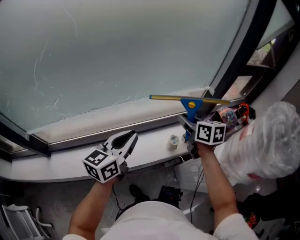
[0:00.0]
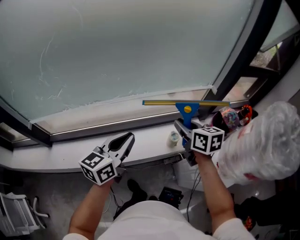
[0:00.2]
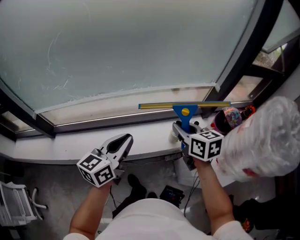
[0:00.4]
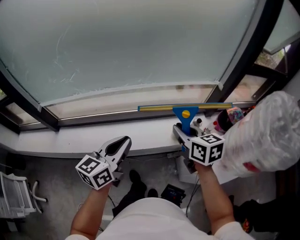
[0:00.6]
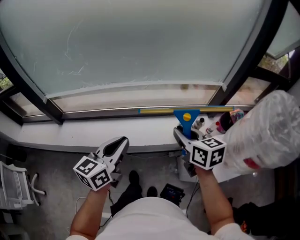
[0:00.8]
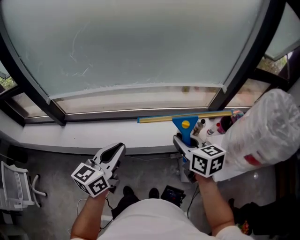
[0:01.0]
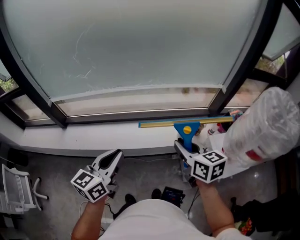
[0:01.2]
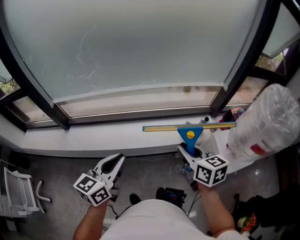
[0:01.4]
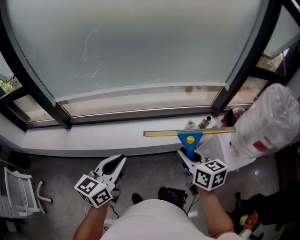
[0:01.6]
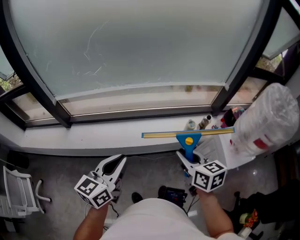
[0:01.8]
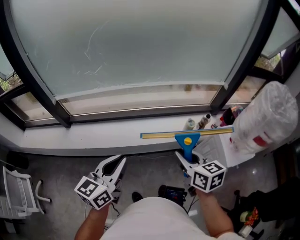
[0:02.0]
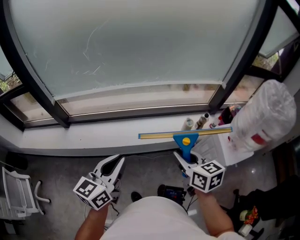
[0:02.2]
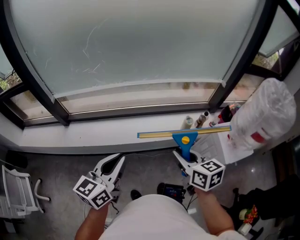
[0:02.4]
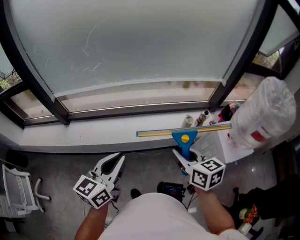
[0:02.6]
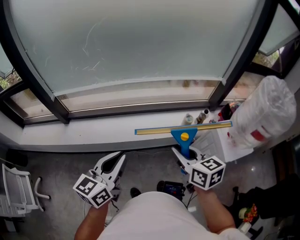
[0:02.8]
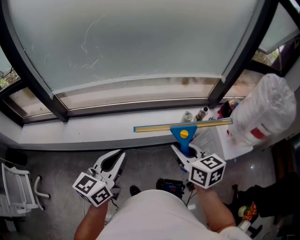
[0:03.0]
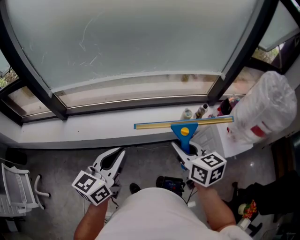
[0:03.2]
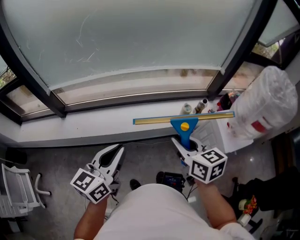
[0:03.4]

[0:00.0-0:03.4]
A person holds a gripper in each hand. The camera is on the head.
0:00.0 to 0:01.6: The two grippers go some 35 cm backward and to the left.
0:01.6 to 0:03.4: There are only small adjustments of the grippers.

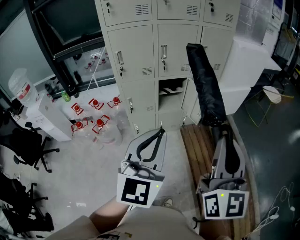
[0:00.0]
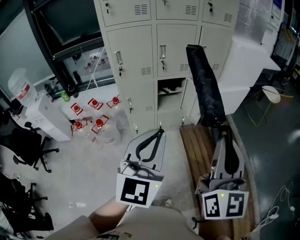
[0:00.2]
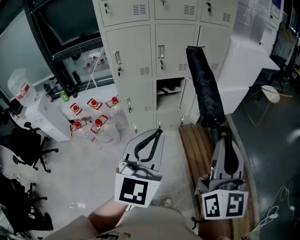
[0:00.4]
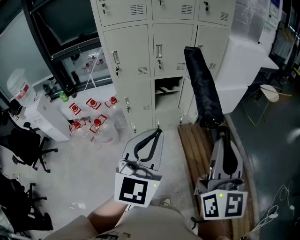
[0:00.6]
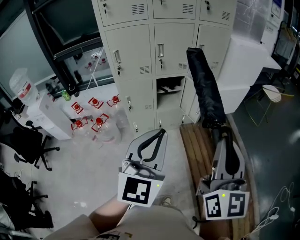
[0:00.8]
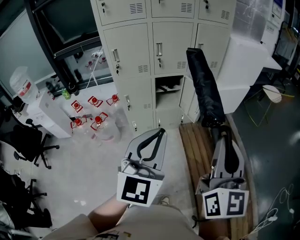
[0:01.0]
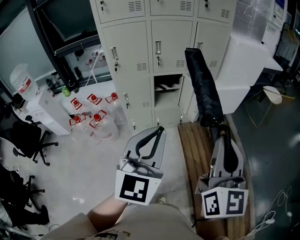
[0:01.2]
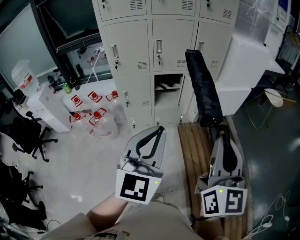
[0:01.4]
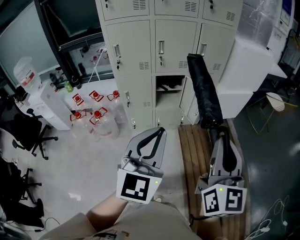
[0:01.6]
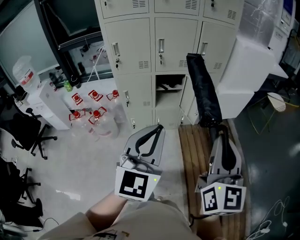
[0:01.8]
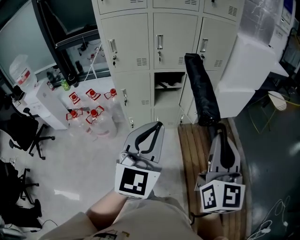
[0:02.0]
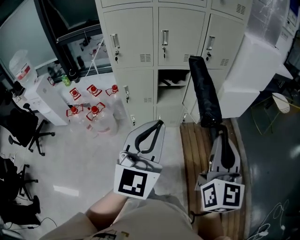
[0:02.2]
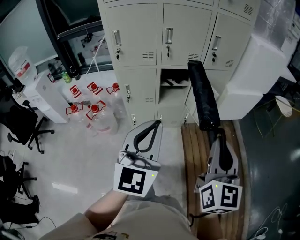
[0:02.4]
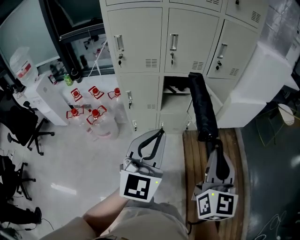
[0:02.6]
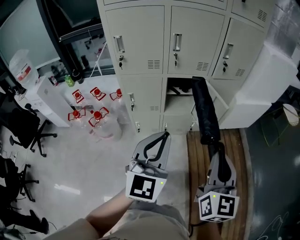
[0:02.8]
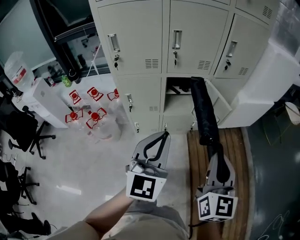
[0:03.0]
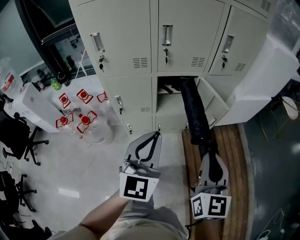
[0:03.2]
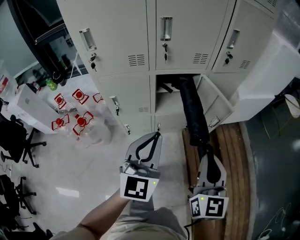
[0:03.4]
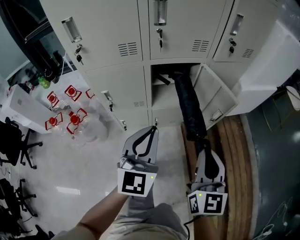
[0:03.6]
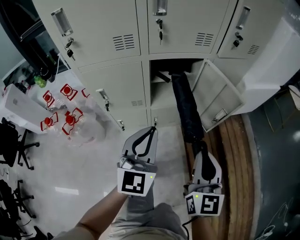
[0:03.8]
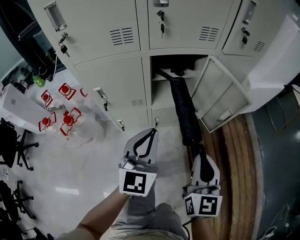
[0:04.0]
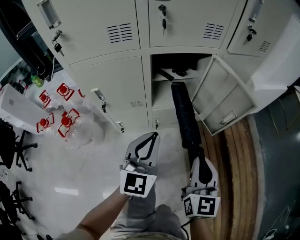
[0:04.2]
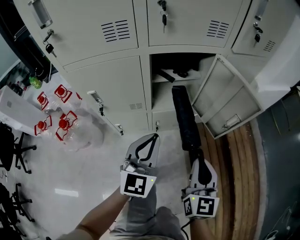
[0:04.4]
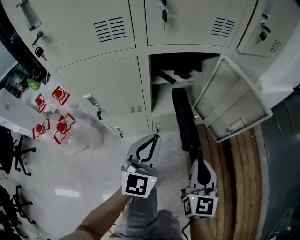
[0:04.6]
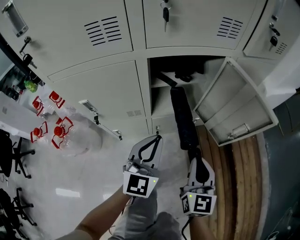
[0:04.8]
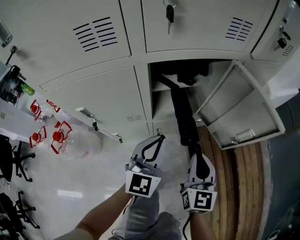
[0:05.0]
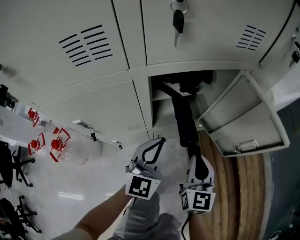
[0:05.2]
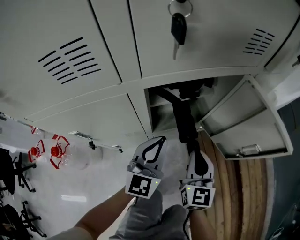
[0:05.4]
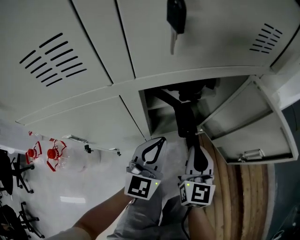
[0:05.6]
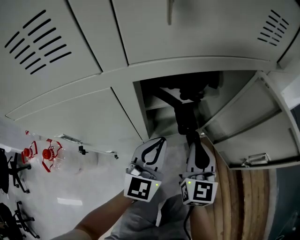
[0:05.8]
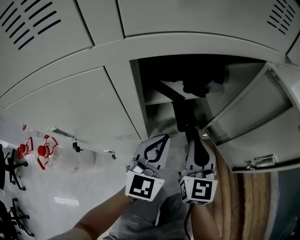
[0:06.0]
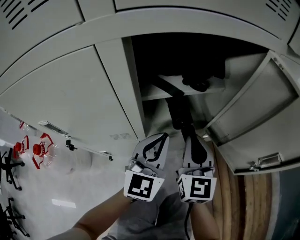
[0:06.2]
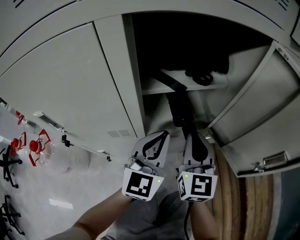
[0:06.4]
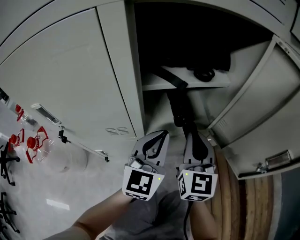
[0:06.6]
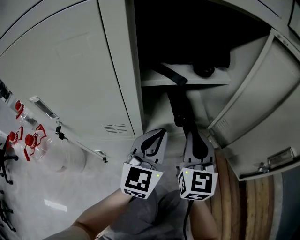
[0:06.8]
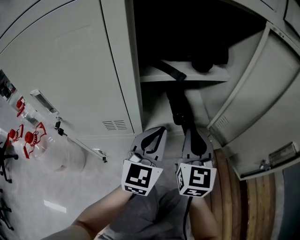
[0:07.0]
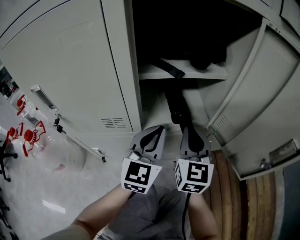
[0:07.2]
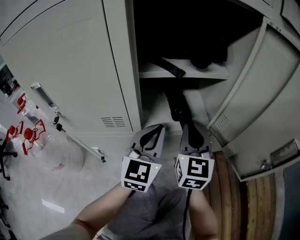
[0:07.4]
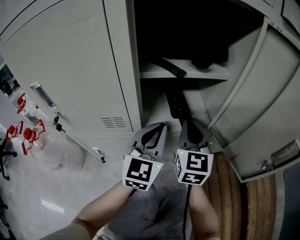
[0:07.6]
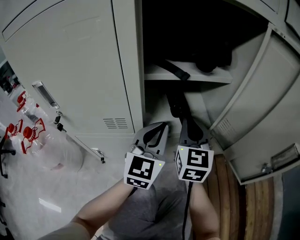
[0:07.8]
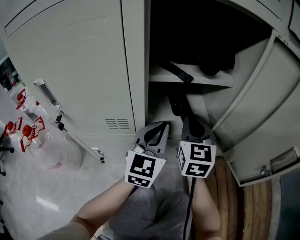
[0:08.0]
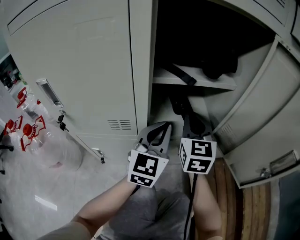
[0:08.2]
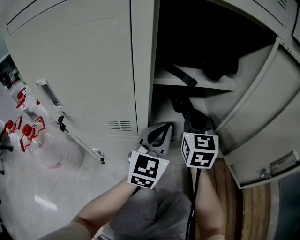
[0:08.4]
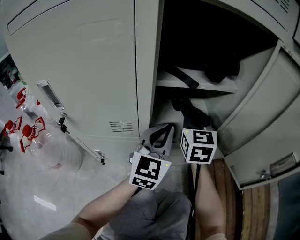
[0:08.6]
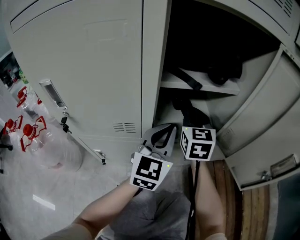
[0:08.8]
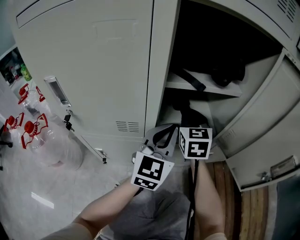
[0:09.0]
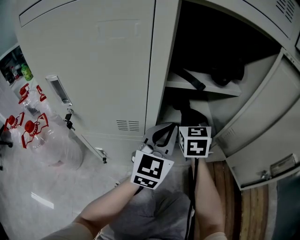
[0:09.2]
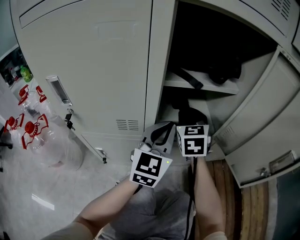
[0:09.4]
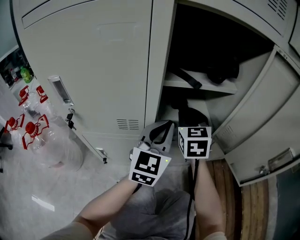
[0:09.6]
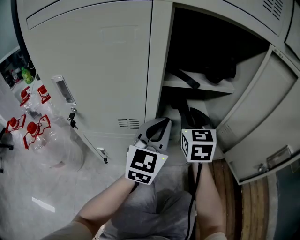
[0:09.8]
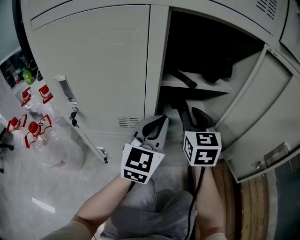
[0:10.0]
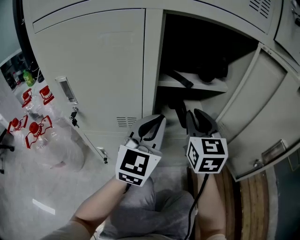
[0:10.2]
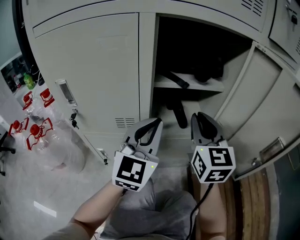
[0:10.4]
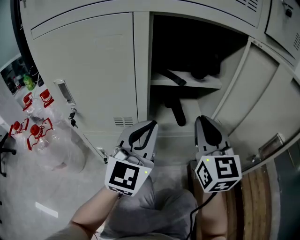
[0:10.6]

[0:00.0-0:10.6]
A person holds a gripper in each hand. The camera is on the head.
0:00.0 to 0:01.6: The two grippers go some 10 cm to the right.
0:01.6 to 0:03.0: The two grippers go roughly 25 cm forward and downward.
0:03.0 to 0:04.6: Both grippers move downward and forward, some 40 cm.
0:04.6 to 0:06.0: Both grippers move forward and downward, about 25 cm.
0:06.0 to 0:07.6: The right gripper travels downward and forward by some 10 cm, while the left gripper moves downward, about 10 cm.
0:07.6 to 0:09.0: The right gripper is displaced forward and to the left by roughly 10 cm.
0:09.0 to 0:10.6: The left gripper goes approximately 10 cm upward and backward. The right gripper travels backward, upward and to the right by approximately 20 cm.

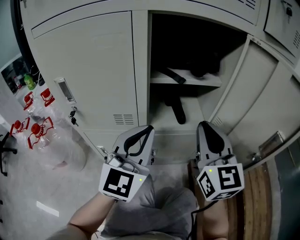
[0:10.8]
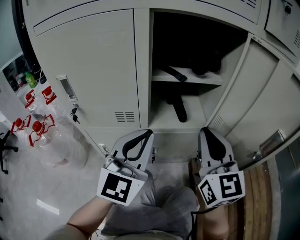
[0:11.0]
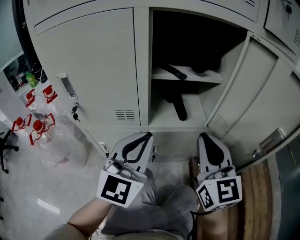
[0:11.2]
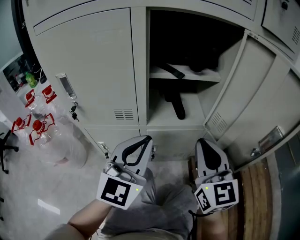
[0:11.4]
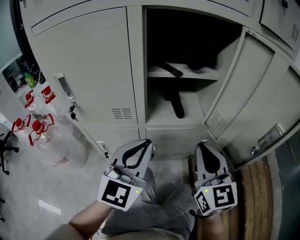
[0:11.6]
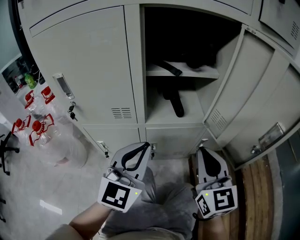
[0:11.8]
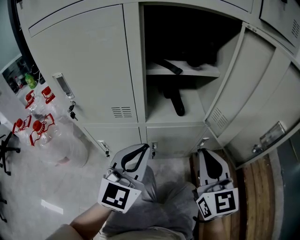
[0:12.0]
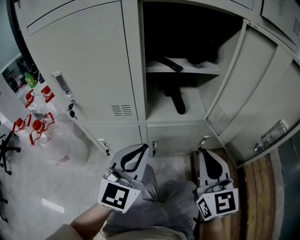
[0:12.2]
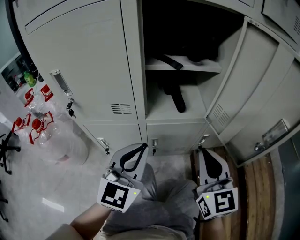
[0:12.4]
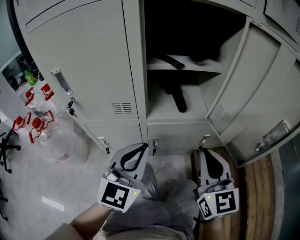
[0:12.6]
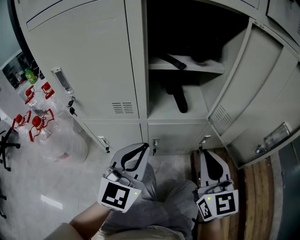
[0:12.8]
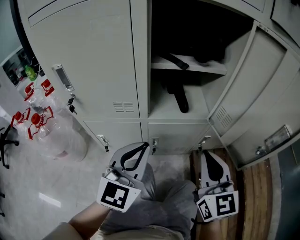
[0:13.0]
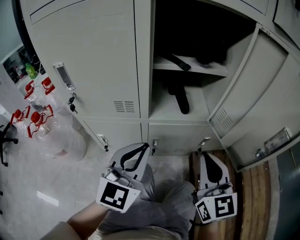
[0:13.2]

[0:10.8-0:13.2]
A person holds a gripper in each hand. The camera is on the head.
0:10.8 to 0:12.0: The left gripper moves downward, about 5 cm; the right gripper shifts approximately 10 cm backward and downward.
0:12.0 to 0:13.2: The grippers stay close to where they were, moving slightly.

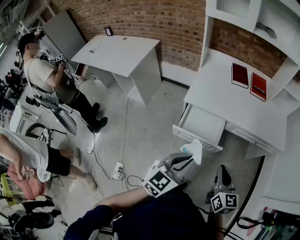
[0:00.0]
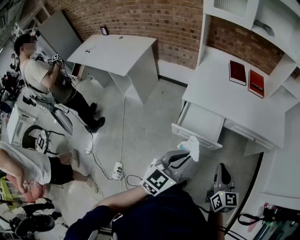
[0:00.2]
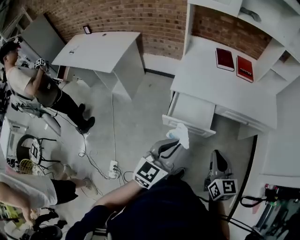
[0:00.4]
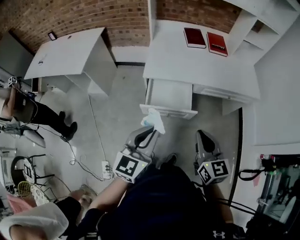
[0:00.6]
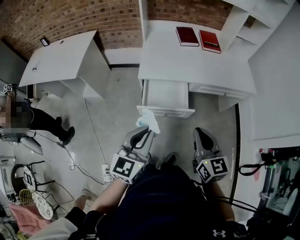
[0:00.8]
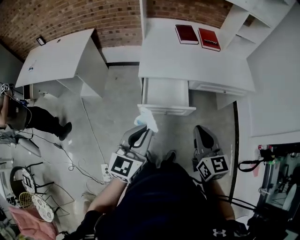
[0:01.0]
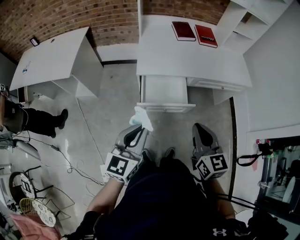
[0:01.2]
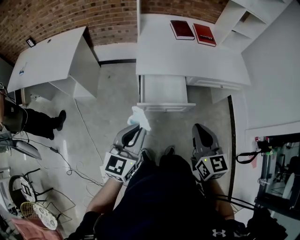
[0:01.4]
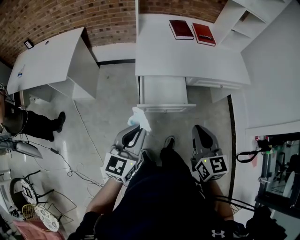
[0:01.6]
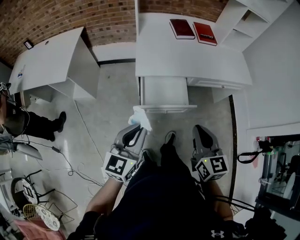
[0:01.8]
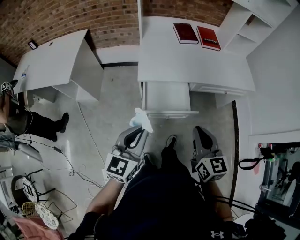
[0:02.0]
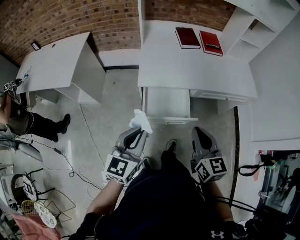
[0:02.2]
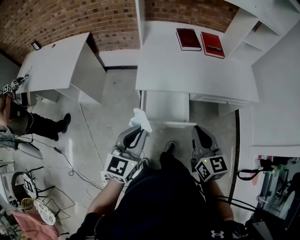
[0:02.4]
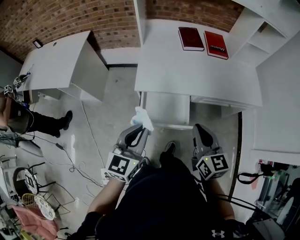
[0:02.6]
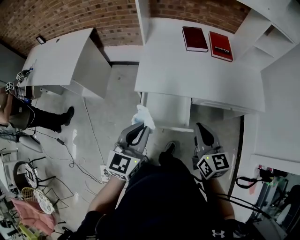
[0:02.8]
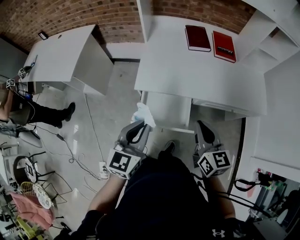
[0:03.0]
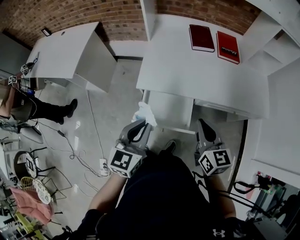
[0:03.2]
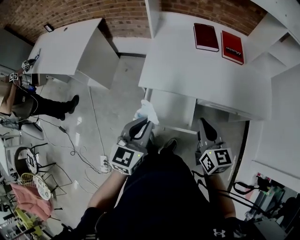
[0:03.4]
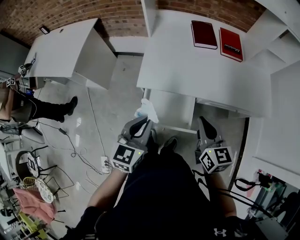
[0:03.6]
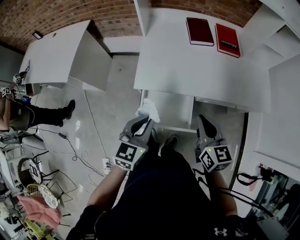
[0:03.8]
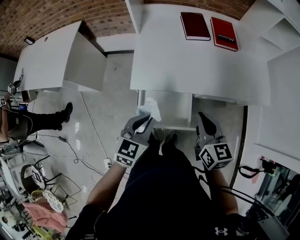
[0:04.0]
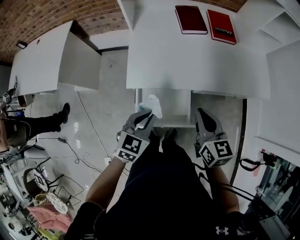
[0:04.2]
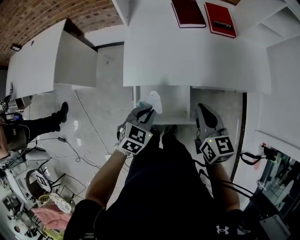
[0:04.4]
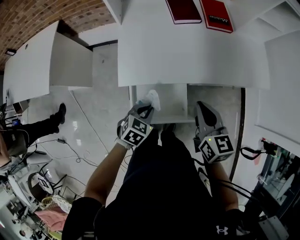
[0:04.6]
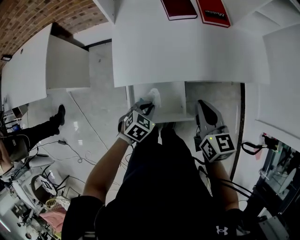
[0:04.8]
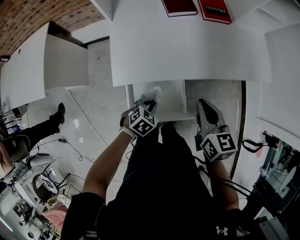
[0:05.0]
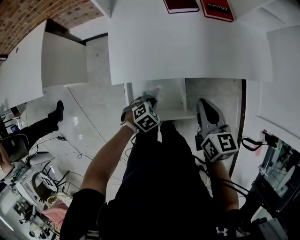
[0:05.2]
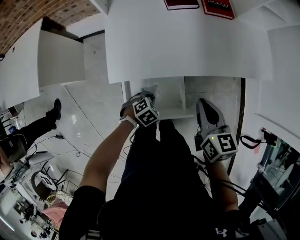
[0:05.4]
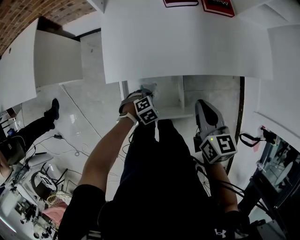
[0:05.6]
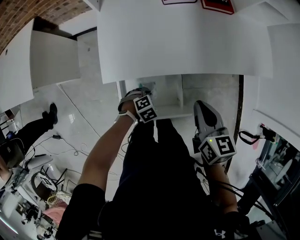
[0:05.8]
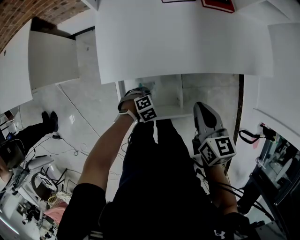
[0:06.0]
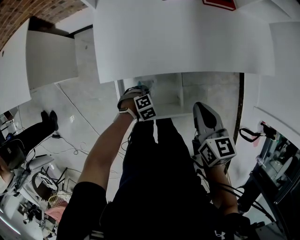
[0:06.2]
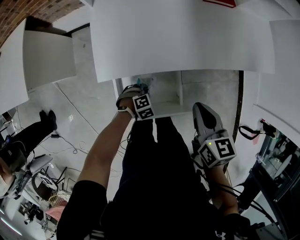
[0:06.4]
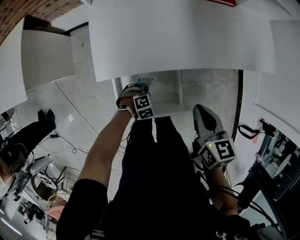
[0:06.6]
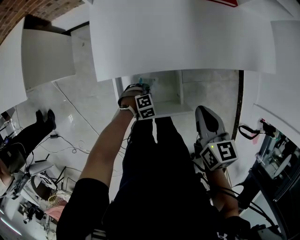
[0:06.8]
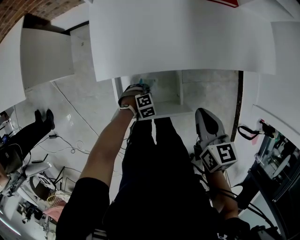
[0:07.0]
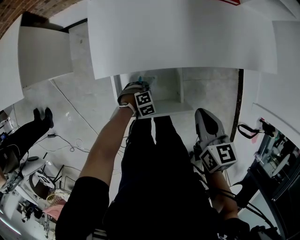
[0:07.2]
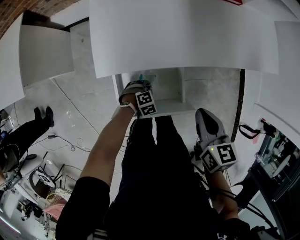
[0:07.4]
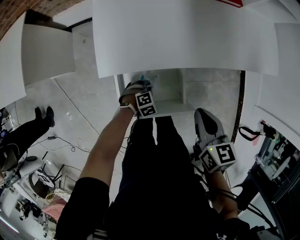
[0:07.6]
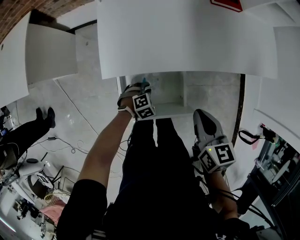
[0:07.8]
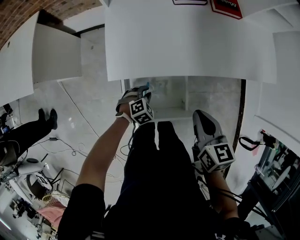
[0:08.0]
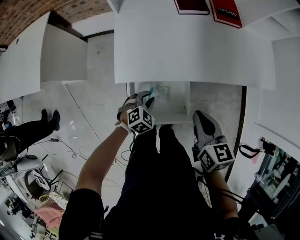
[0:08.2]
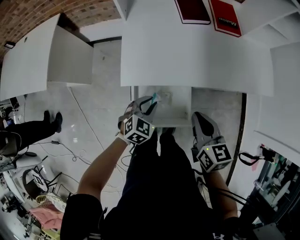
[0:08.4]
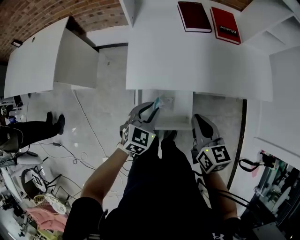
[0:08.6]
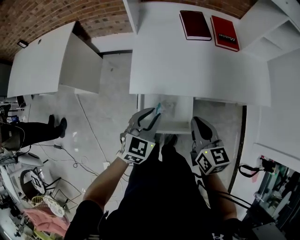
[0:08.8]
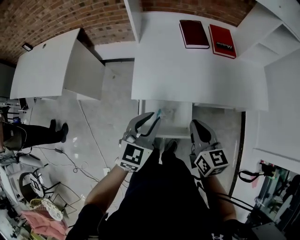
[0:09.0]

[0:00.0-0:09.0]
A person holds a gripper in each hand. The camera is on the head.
0:00.0 to 0:01.6: The right gripper travels to the left by approximately 10 cm; the left gripper is displaced to the left by some 15 cm.
0:01.6 to 0:03.0: The left gripper heads forward and to the right, covering about 20 cm; the right gripper heads forward, covering some 20 cm.
0:03.0 to 0:04.4: The right gripper is displaced forward and downward by some 10 cm, while the left gripper travels downward and forward by approximately 20 cm, and rotates about 40 degrees.
0:04.4 to 0:06.0: The left gripper heads downward, covering roughly 25 cm, and points its fingers roughly 30 degrees further downward, while the right gripper heads downward, covering roughly 10 cm.
0:06.0 to 0:07.6: The grippers make only small movements.
0:07.6 to 0:09.0: The left gripper heads upward, covering some 40 cm, and points its fingers roughly 50 degrees further upward. The right gripper shifts some 10 cm upward.
